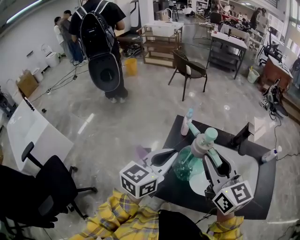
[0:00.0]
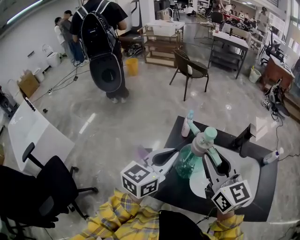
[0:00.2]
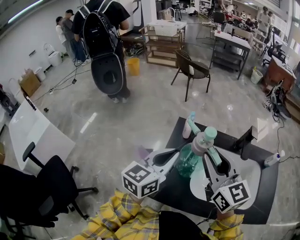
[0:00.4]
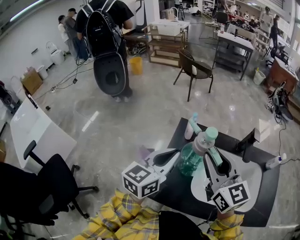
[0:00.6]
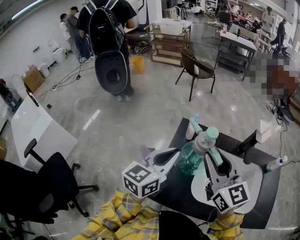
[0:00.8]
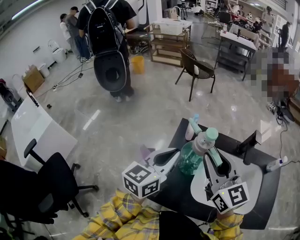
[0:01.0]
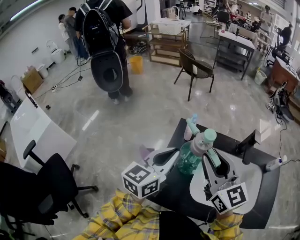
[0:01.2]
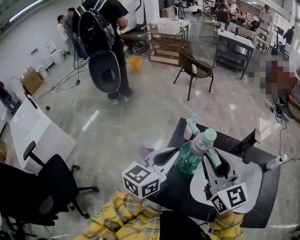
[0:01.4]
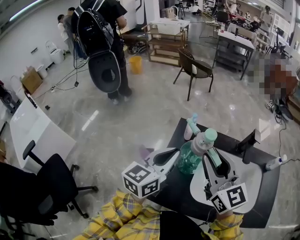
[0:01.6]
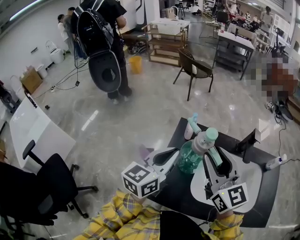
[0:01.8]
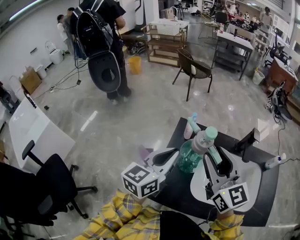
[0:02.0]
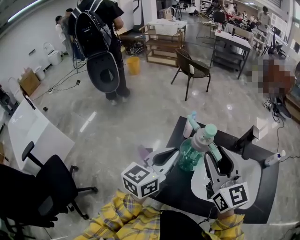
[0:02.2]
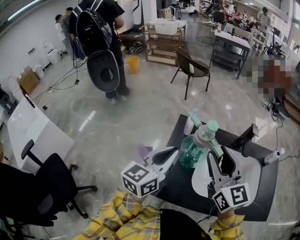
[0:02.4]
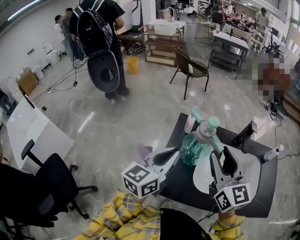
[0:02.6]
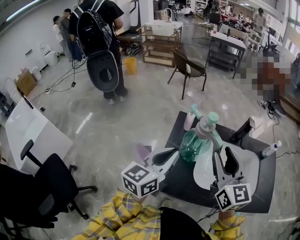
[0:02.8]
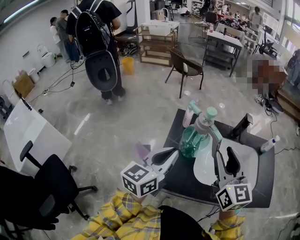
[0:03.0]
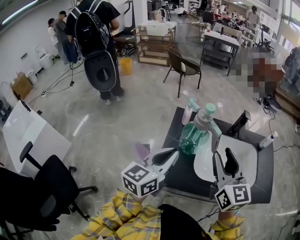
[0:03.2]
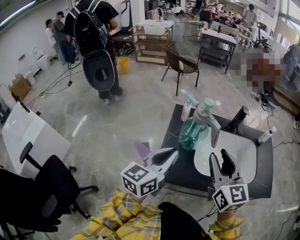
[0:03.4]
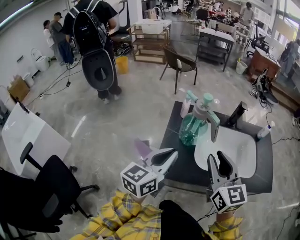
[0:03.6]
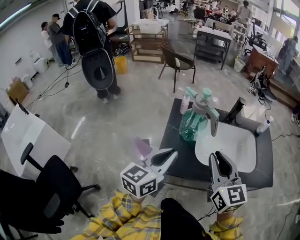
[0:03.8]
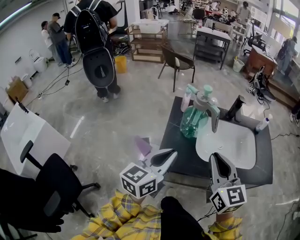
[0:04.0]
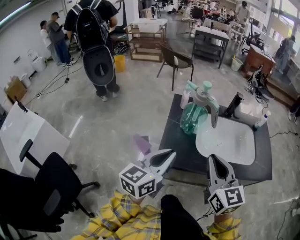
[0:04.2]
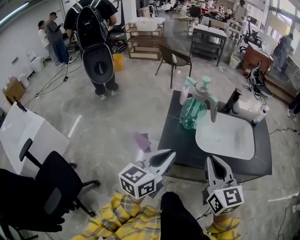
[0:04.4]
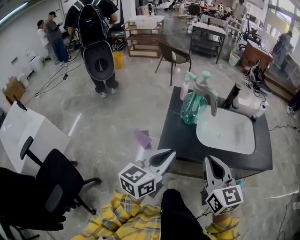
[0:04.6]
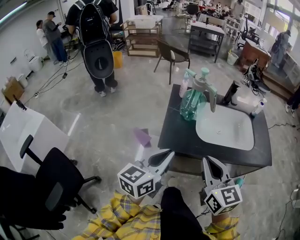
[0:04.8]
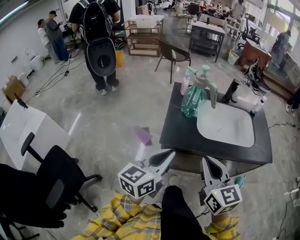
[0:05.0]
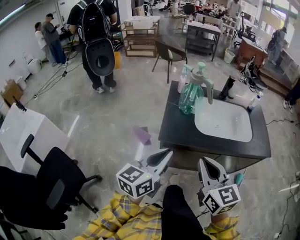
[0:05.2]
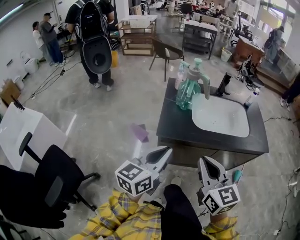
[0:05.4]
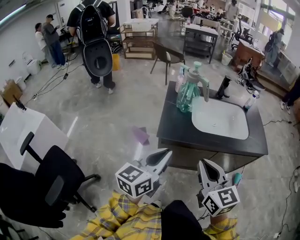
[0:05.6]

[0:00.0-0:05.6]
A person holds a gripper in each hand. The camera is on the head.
0:00.0 to 0:01.4: The right gripper changes place by approximately 5 cm. The left gripper shifts approximately 5 cm forward.
0:01.4 to 0:02.8: The grippers both shift backward by roughly 5 cm.
0:02.8 to 0:04.2: Both grippers move backward, about 20 cm. The right gripper closes up.
0:04.2 to 0:05.6: Both grippers travel together backward, roughly 20 cm.

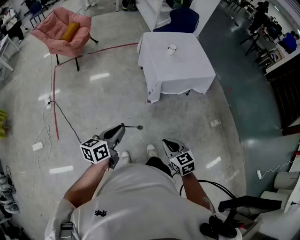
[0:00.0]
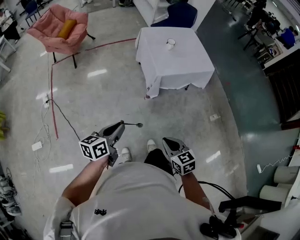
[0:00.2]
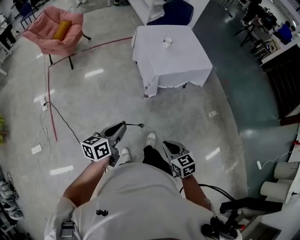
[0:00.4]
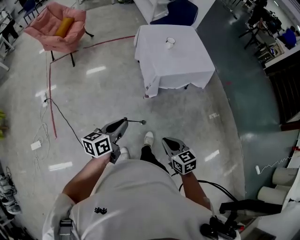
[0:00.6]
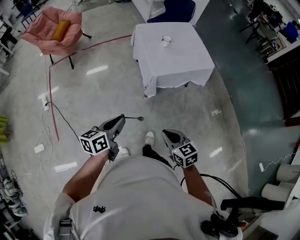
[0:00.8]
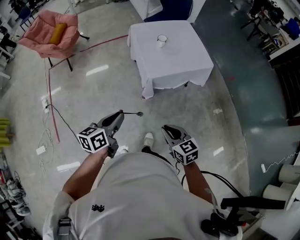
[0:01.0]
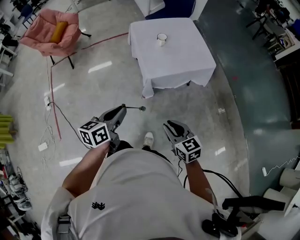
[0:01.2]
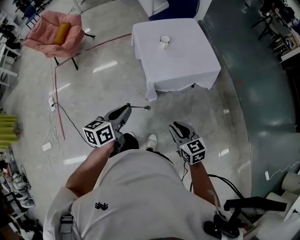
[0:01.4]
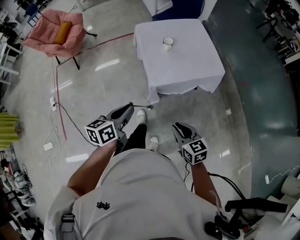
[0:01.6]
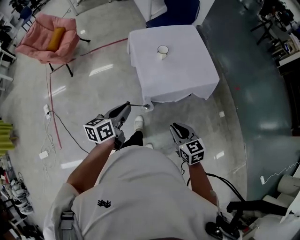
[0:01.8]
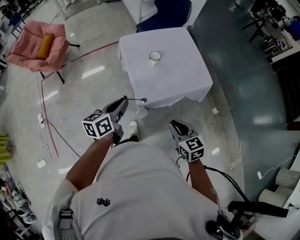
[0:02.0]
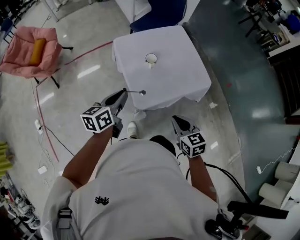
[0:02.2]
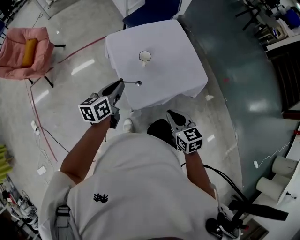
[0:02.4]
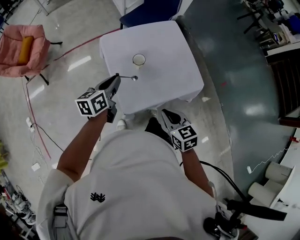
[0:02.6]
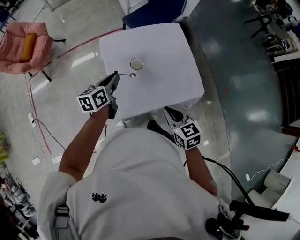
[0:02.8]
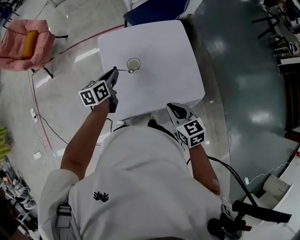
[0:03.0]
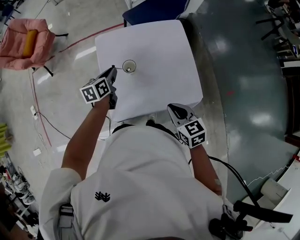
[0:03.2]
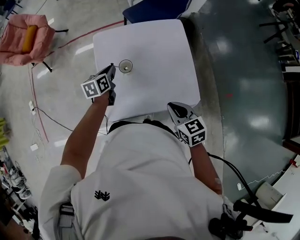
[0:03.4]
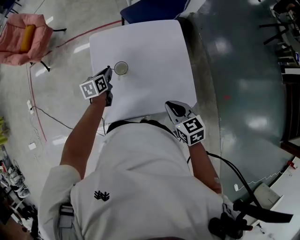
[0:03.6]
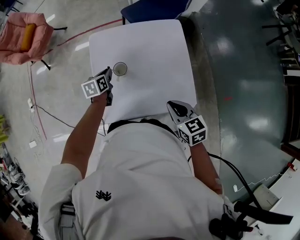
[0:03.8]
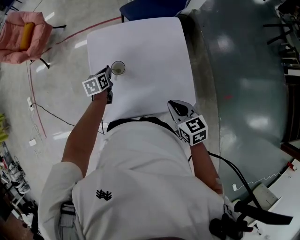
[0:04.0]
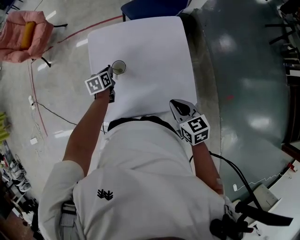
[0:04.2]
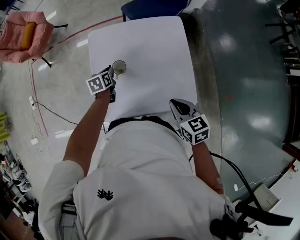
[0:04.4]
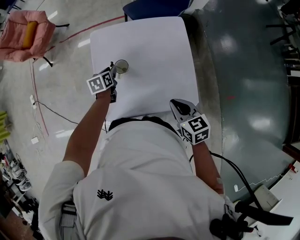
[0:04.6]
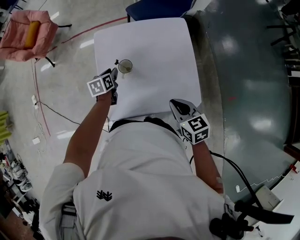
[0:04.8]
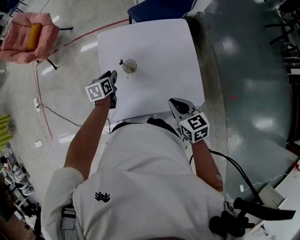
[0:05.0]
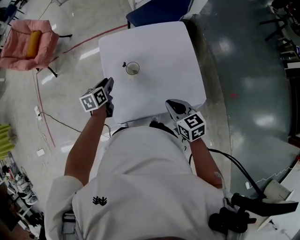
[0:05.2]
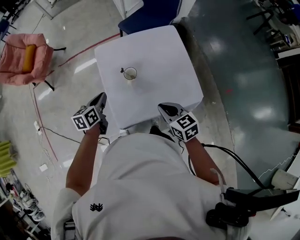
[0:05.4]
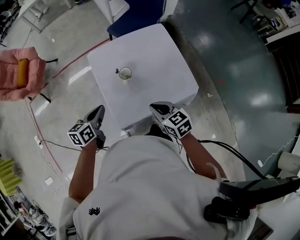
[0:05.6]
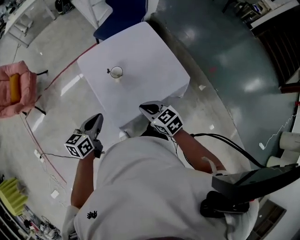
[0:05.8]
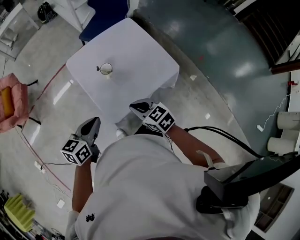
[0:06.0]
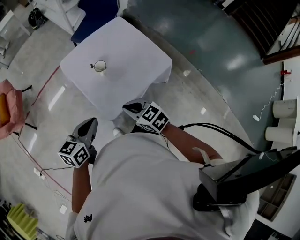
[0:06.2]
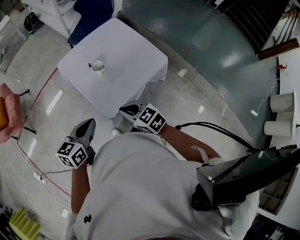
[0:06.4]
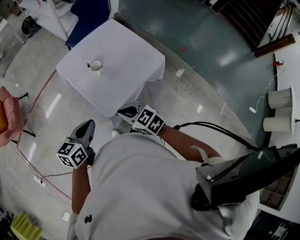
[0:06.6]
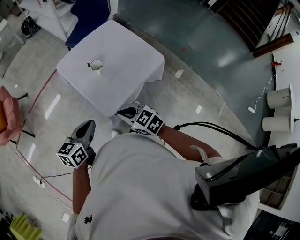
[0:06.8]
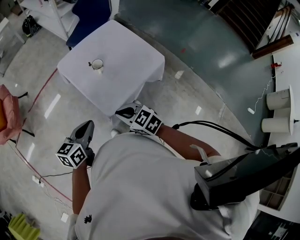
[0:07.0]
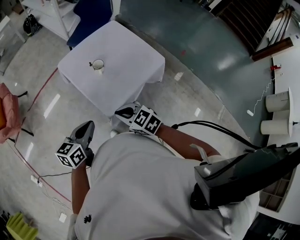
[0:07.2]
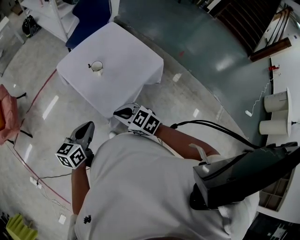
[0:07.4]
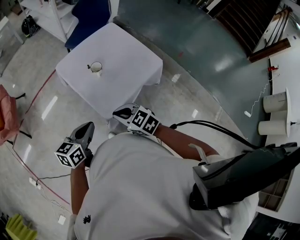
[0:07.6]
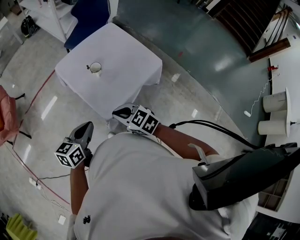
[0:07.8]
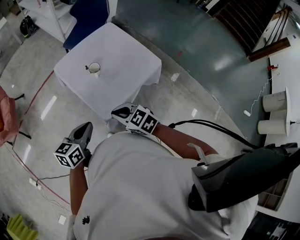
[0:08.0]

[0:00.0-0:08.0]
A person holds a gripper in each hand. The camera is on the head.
0:00.0 to 0:01.6: Both grippers travel together forward and to the right, about 30 cm.
0:01.6 to 0:03.2: The pair of grippers is taken forward, roughly 50 cm.
0:03.2 to 0:04.8: The left gripper travels downward by about 10 cm. The right gripper shifts by roughly 5 cm.
0:04.8 to 0:06.4: The right gripper changes place by roughly 35 cm; the left gripper changes place by roughly 40 cm, rotates some 60 degrees, and closes its fingers.
0:06.4 to 0:08.0: There are only small adjustments of the grippers.

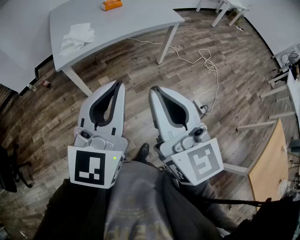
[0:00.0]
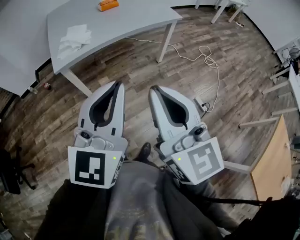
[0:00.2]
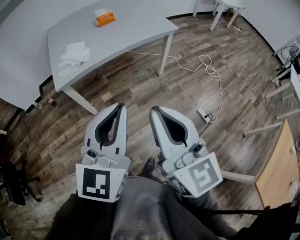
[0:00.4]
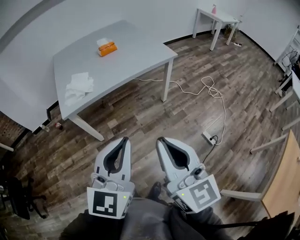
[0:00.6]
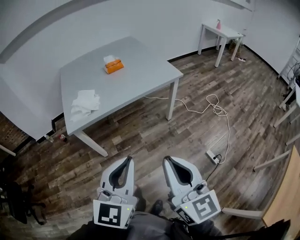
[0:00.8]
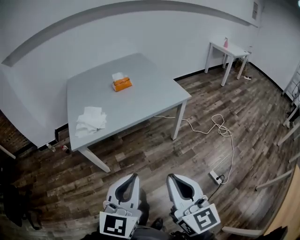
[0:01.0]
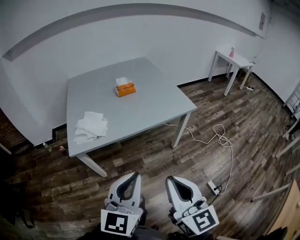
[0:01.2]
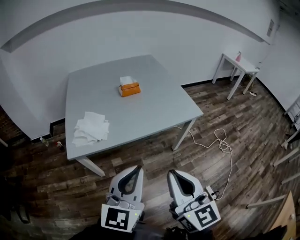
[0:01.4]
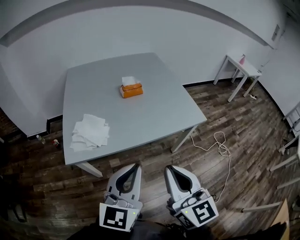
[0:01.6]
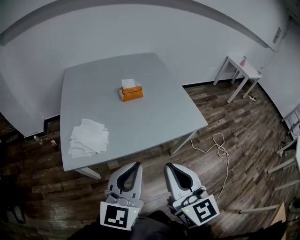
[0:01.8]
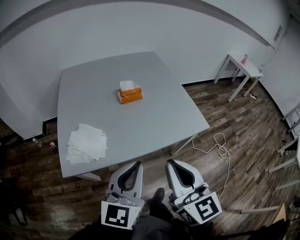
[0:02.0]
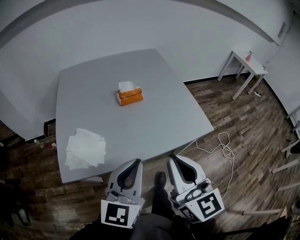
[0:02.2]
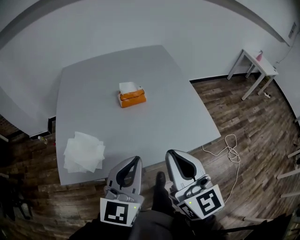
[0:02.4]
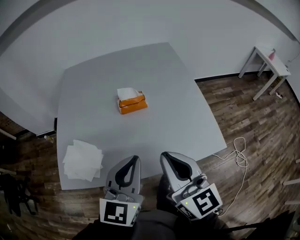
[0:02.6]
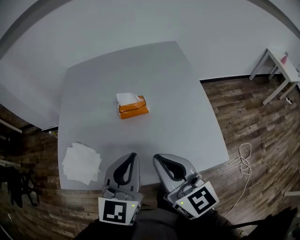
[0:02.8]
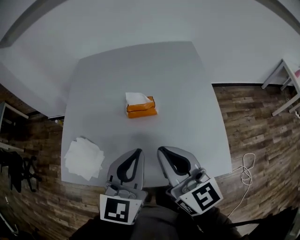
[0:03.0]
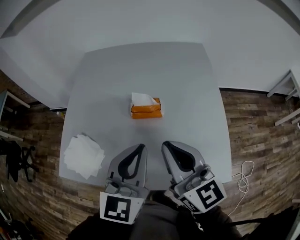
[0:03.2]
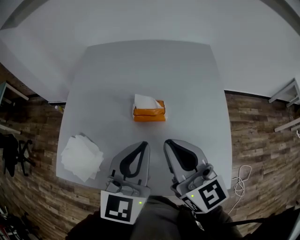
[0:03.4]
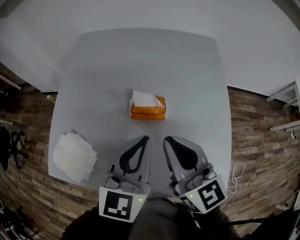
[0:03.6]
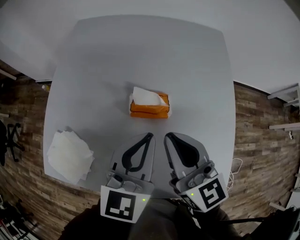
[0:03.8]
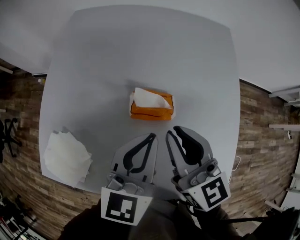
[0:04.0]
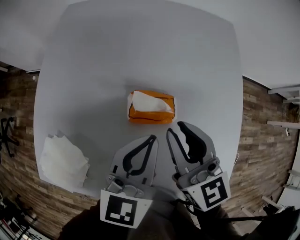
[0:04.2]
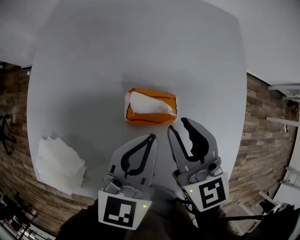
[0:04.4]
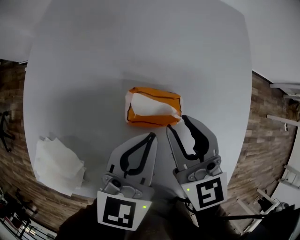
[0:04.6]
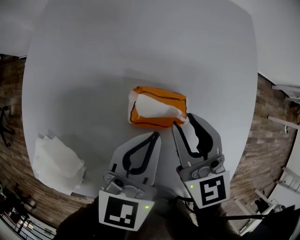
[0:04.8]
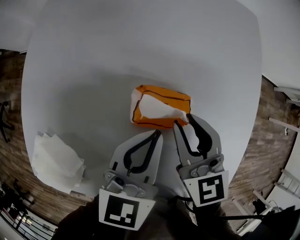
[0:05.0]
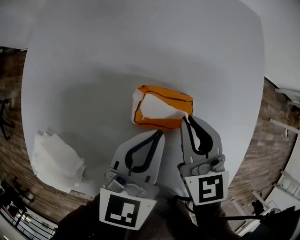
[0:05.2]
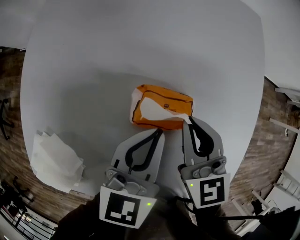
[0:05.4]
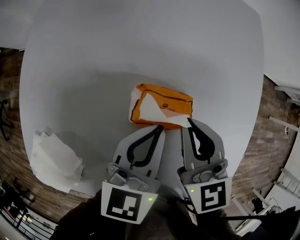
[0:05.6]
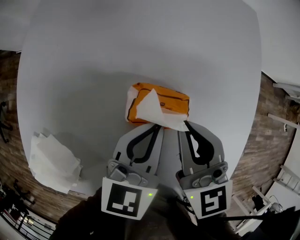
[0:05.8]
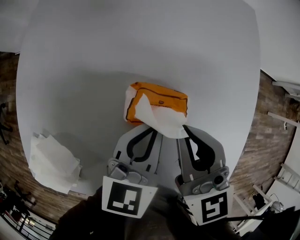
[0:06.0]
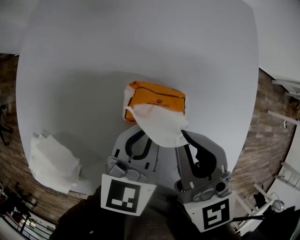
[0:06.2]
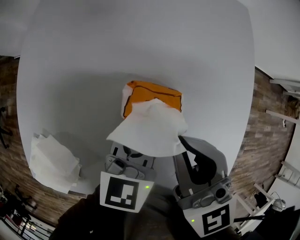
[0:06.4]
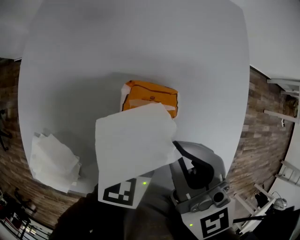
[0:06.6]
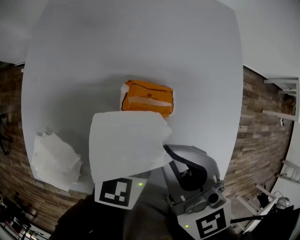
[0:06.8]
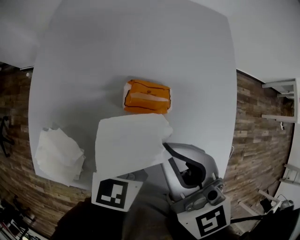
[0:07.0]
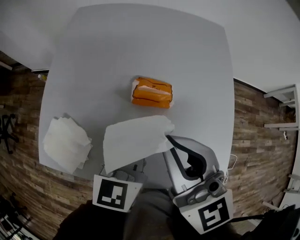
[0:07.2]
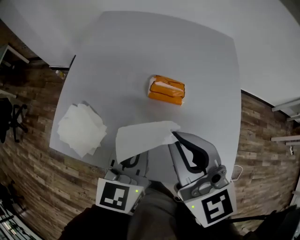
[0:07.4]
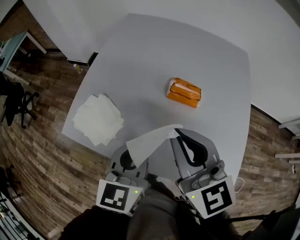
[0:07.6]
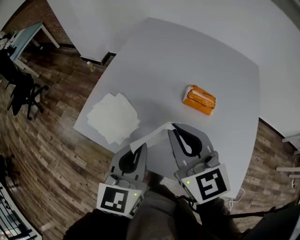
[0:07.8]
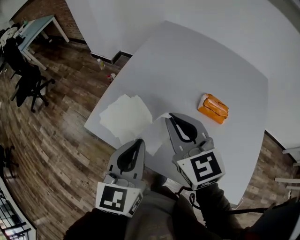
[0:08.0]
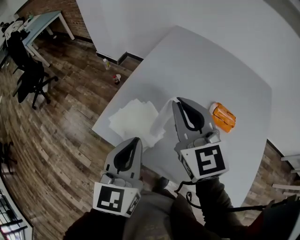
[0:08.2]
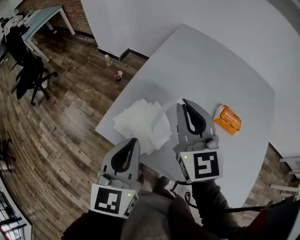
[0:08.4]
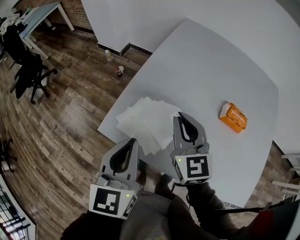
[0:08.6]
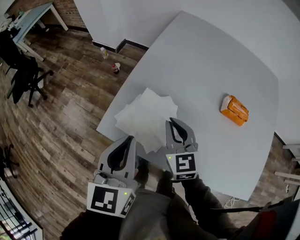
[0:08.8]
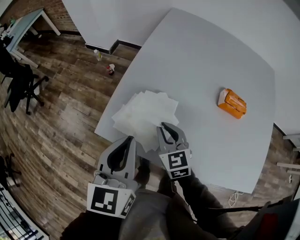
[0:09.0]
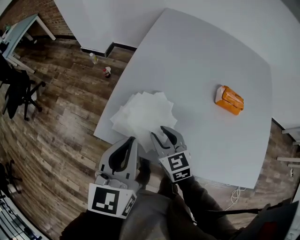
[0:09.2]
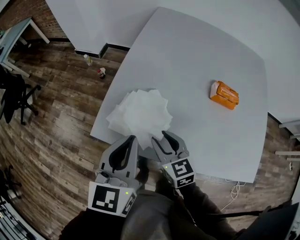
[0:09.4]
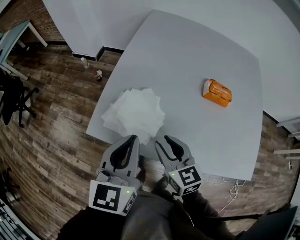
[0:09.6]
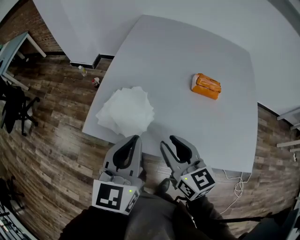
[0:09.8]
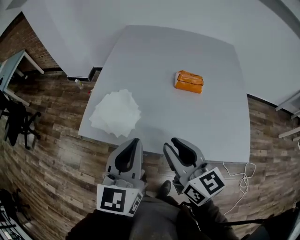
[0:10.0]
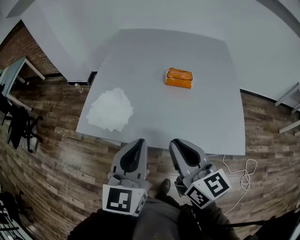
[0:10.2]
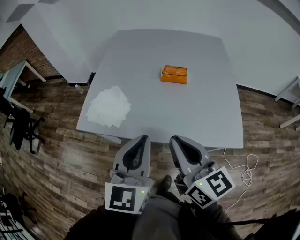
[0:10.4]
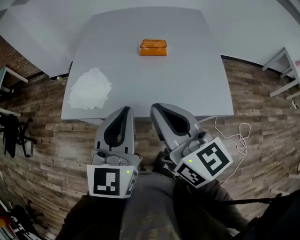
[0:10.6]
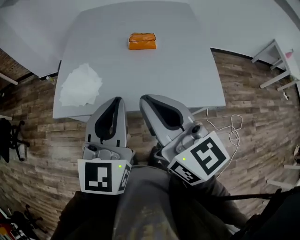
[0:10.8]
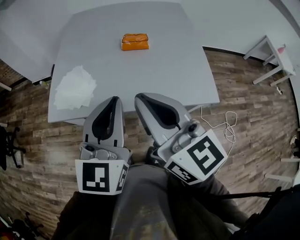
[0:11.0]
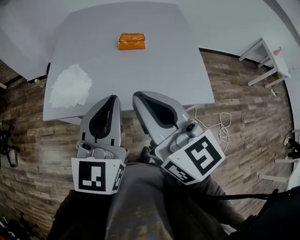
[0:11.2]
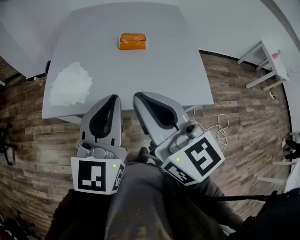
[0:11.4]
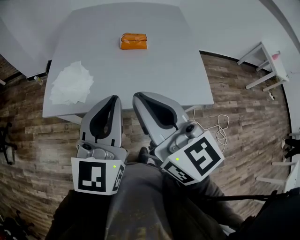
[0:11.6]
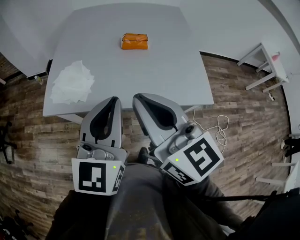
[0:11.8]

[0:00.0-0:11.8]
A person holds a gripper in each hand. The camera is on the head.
0:00.0 to 0:01.4: Both grippers move forward, about 25 cm.
0:01.4 to 0:03.0: The pair of grippers is taken forward, some 50 cm. The left gripper changes its angle by approximately 20 degrees. The right gripper changes its angle by about 30 degrees.
0:03.0 to 0:04.4: Both grippers move forward and downward, some 30 cm. The right gripper swivels about 20 degrees.
0:04.4 to 0:06.0: The right gripper goes downward and returns, some 10 cm each way. Meanwhile the left gripper is displaced downward by roughly 5 cm.
0:06.0 to 0:07.4: The left gripper travels backward, upward and to the left by roughly 25 cm, and turns by some 20 degrees. Meanwhile the right gripper moves backward and upward, some 25 cm.
0:07.4 to 0:08.8: The left gripper moves to the left, roughly 35 cm, and changes its angle by some 20 degrees; the right gripper shifts some 35 cm to the left, downward and forward.
0:08.8 to 0:10.4: The right gripper moves backward, to the right and upward, roughly 40 cm, changes its angle by some 30 degrees, and opens, then closes again; the left gripper shifts about 35 cm backward and to the right, and changes its angle by approximately 30 degrees.
0:10.4 to 0:11.8: The right gripper goes about 5 cm upward.
